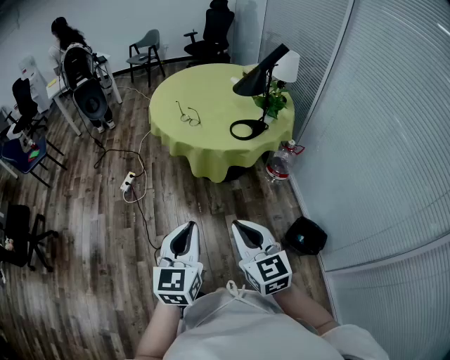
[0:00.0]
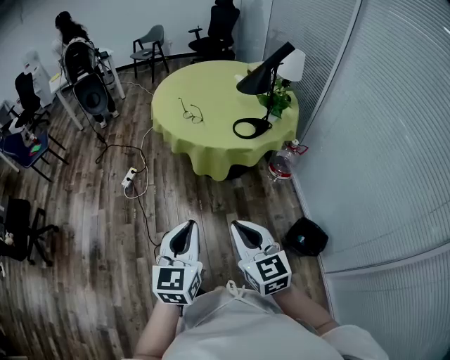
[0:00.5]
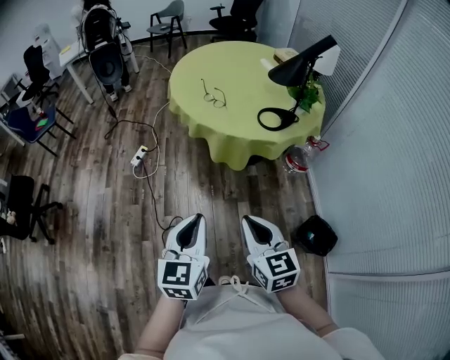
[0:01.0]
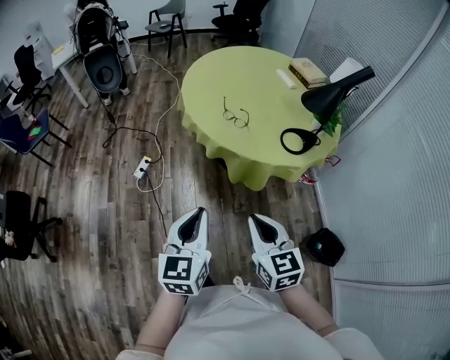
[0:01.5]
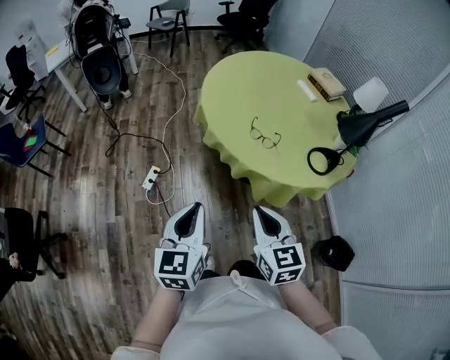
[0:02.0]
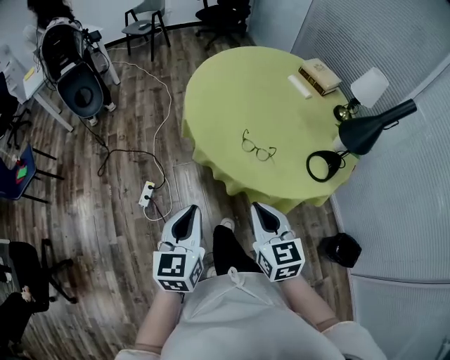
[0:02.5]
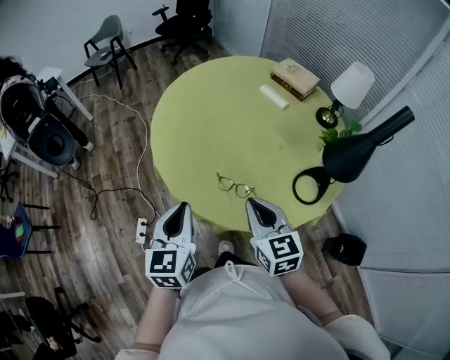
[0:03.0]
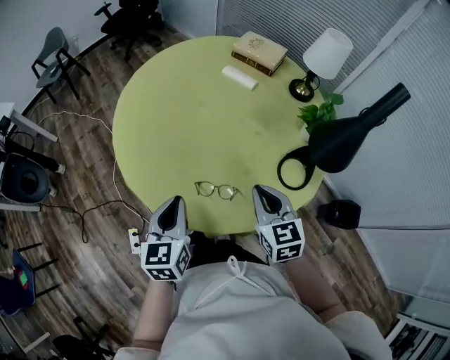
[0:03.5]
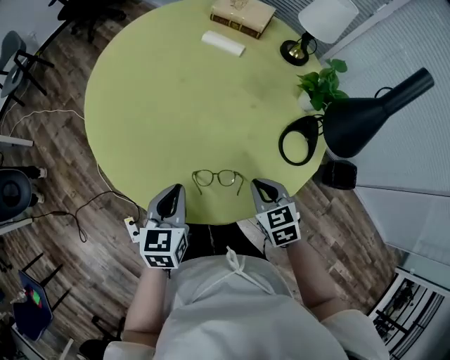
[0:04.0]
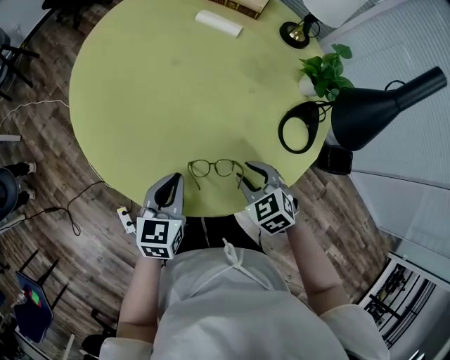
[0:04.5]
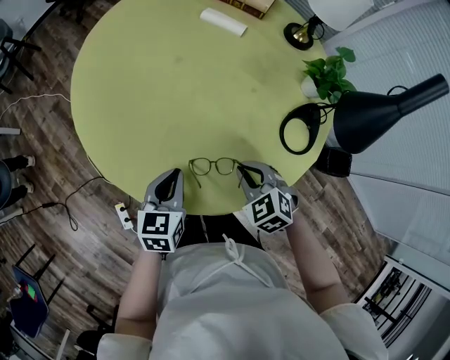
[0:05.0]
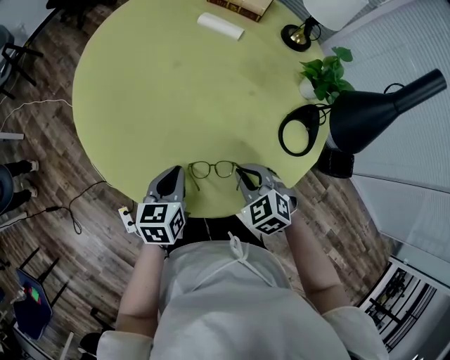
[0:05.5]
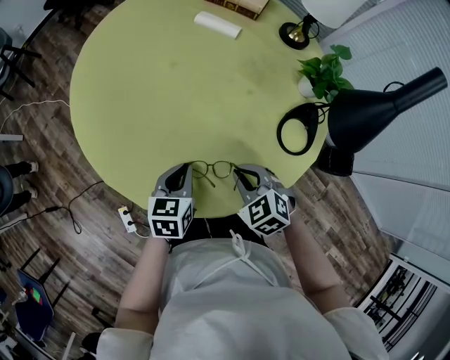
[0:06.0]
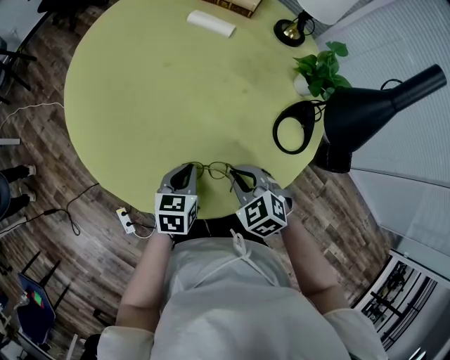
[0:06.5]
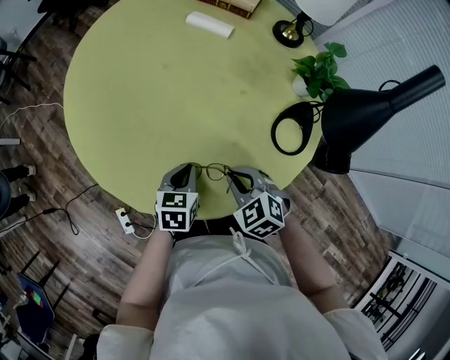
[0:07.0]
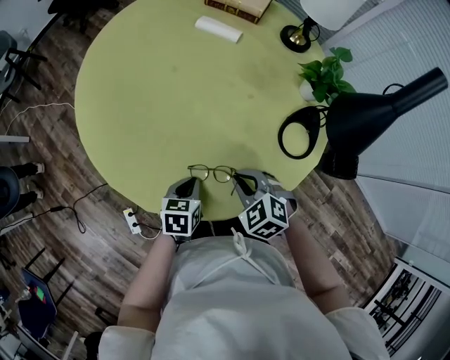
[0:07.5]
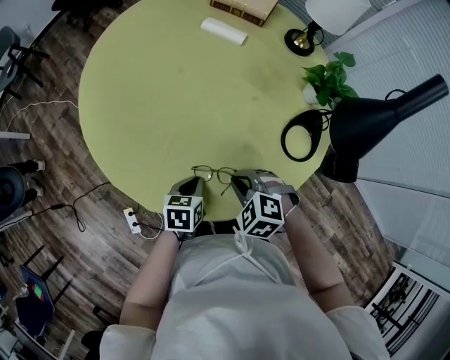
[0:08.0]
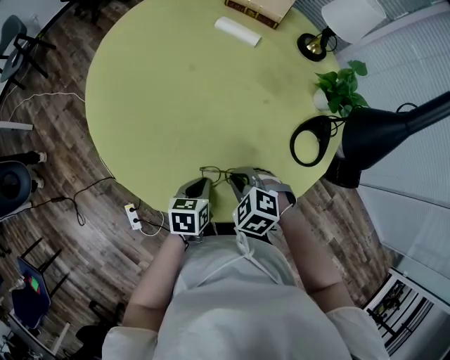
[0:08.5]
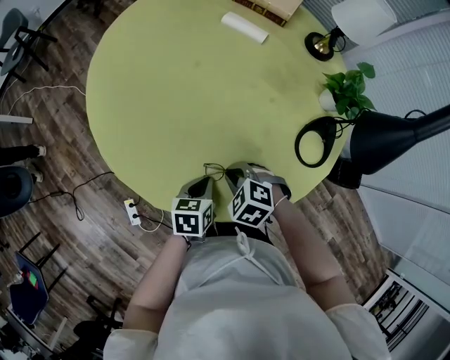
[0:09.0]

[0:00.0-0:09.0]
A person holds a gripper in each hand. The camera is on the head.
0:00.0 to 0:02.0: The pair of grippers is taken forward and to the left, approximately 50 cm.
0:02.0 to 0:04.5: The left gripper changes place by some 50 cm, and rotates about 50 degrees; the right gripper moves roughly 50 cm, points its fingers some 30 degrees further downward, and opens up.
0:04.5 to 0:07.0: The right gripper closes. Meanwhile the left gripper heads downward and to the right, covering roughly 10 cm.
0:07.0 to 0:09.0: The right gripper shifts some 5 cm to the left, and turns by about 20 degrees.

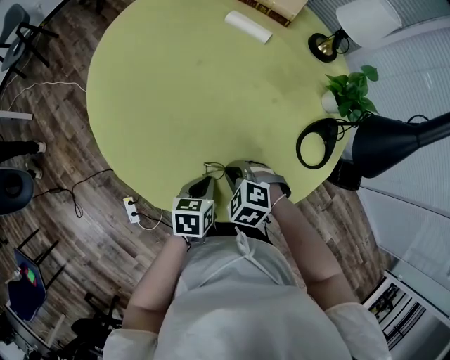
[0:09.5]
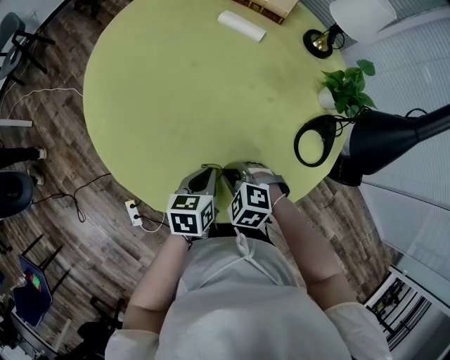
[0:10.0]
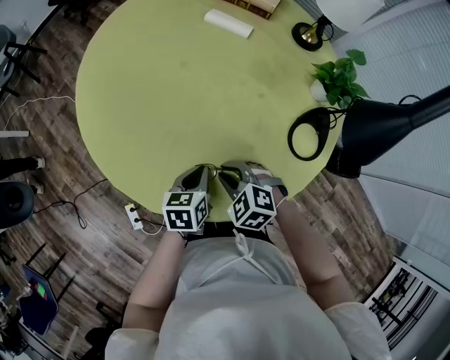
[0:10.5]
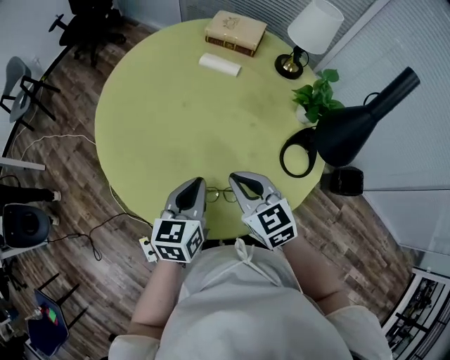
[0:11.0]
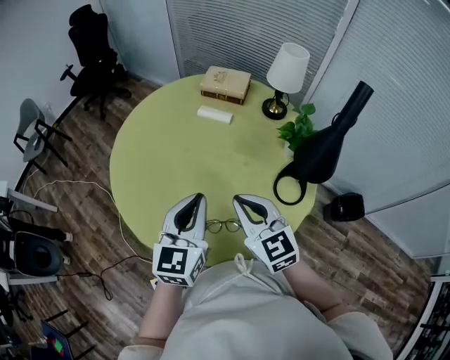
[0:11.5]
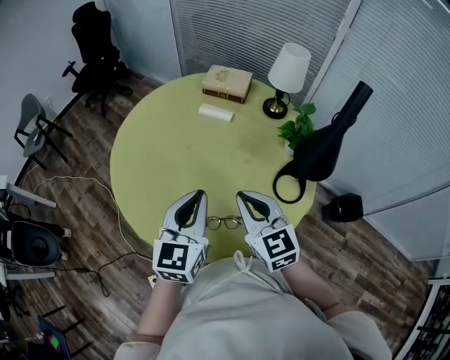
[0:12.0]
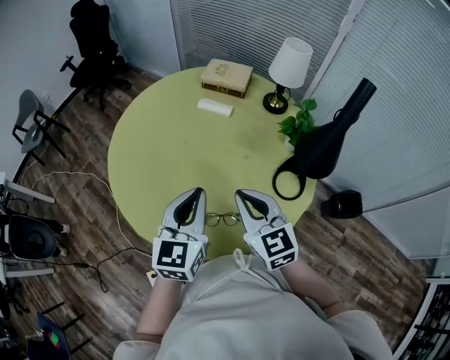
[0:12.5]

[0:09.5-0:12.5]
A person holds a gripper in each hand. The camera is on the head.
0:09.5 to 0:11.0: The grippers both shift upward by roughly 20 cm. The left gripper swivels approximately 30 degrees; the right gripper points its fingers approximately 40 degrees further upward.
0:11.0 to 0:12.5: Both grippers move upward, about 10 cm. The left gripper rotates roughly 20 degrees.

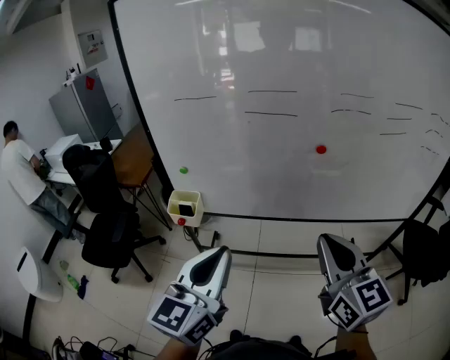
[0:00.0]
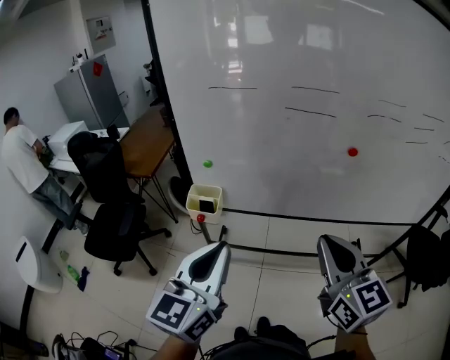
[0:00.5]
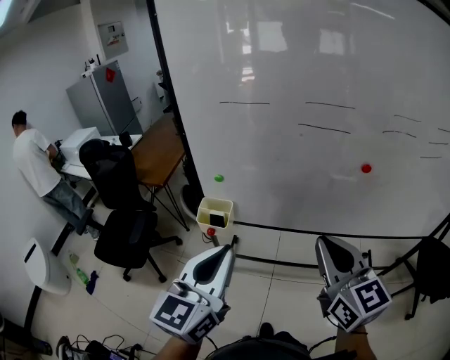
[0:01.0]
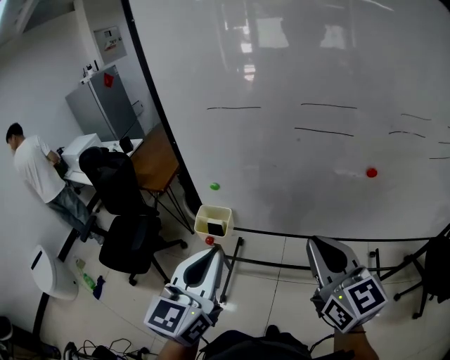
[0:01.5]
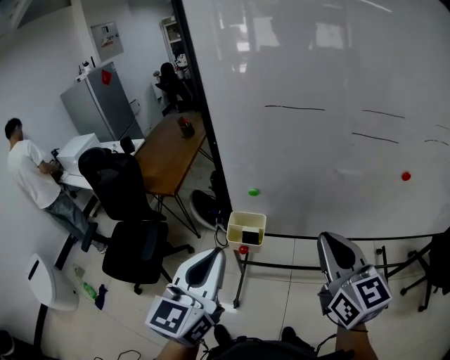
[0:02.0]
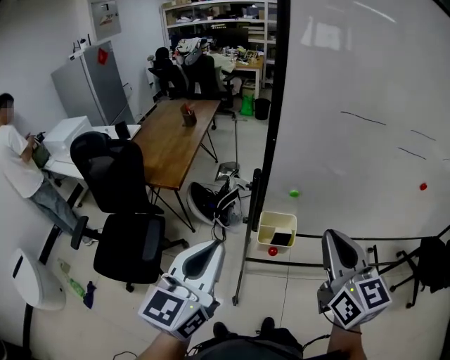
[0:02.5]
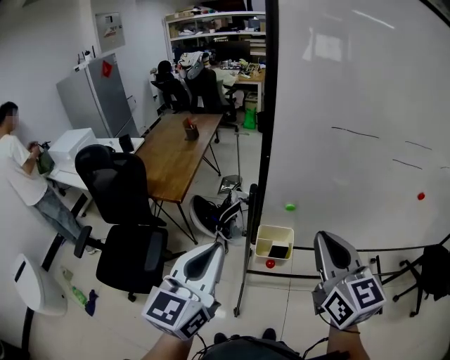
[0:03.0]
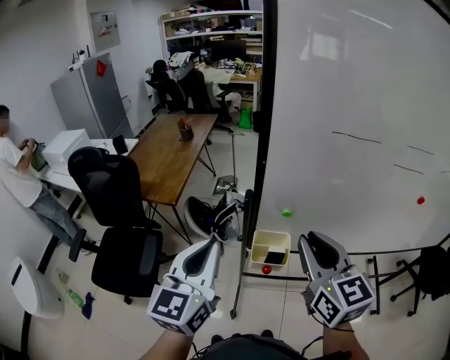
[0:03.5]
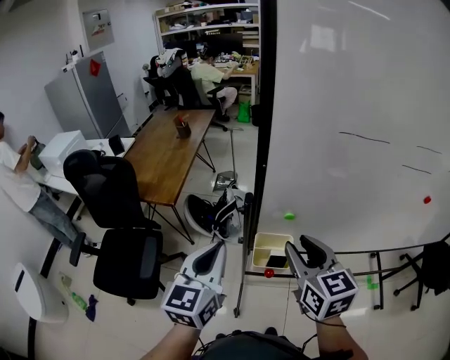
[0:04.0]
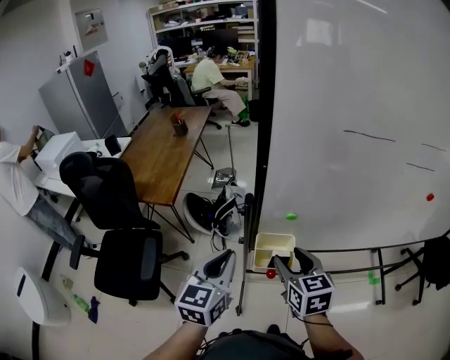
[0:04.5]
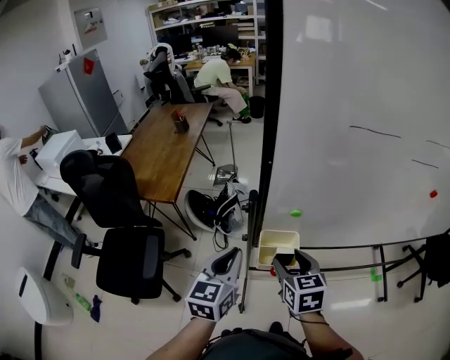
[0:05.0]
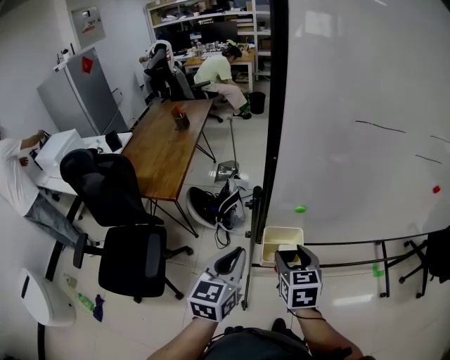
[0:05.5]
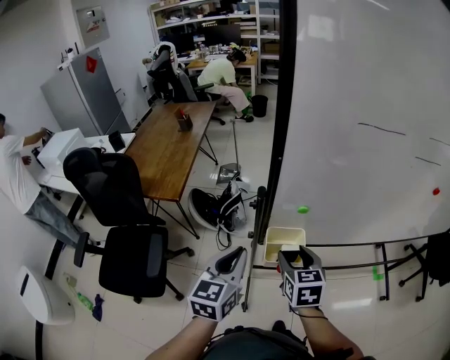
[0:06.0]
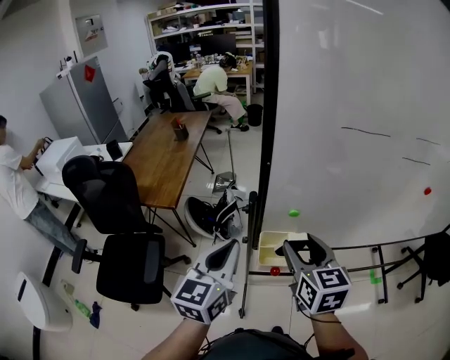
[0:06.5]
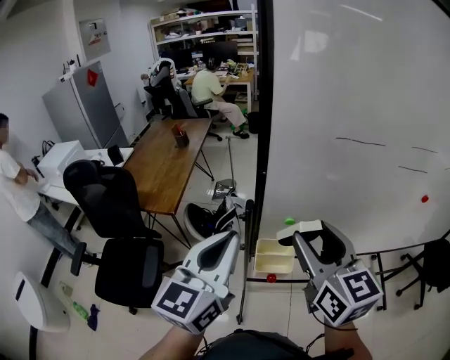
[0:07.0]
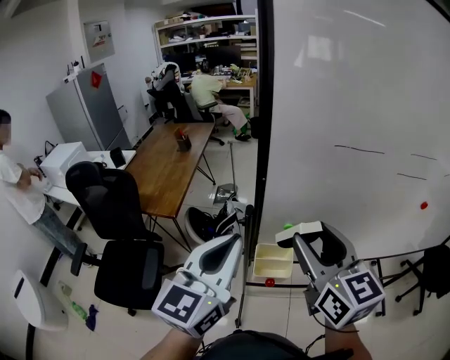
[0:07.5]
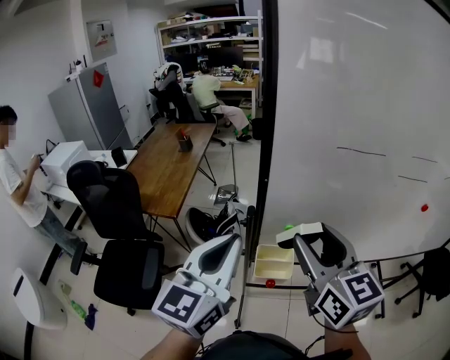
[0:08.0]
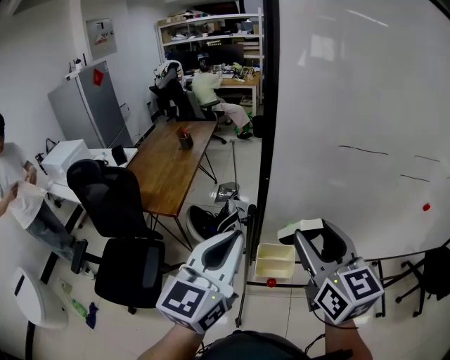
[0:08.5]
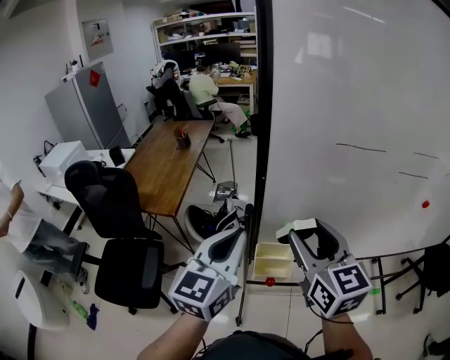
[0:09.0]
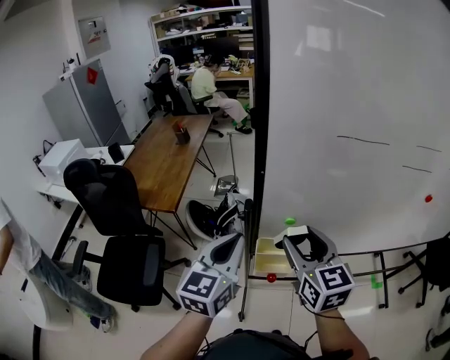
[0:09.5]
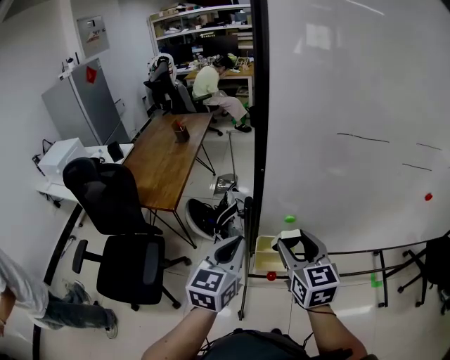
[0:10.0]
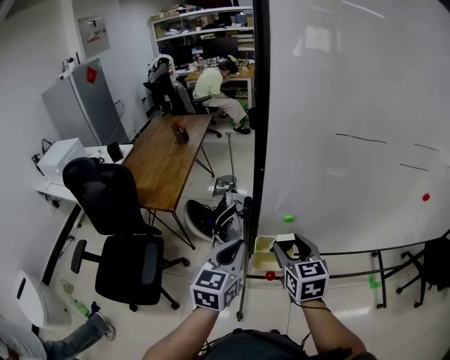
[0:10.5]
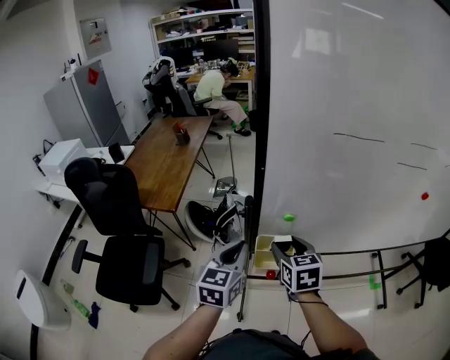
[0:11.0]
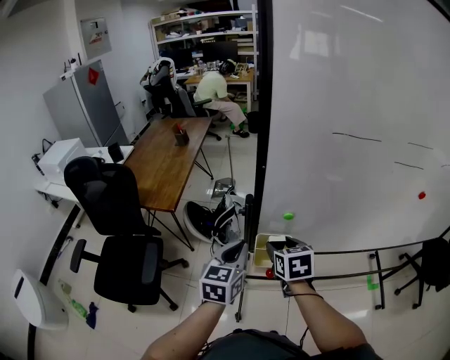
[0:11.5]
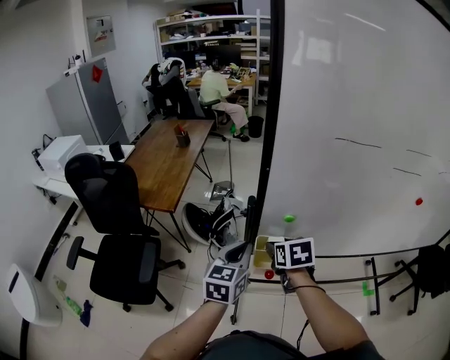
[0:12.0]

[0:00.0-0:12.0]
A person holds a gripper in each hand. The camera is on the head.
0:00.0 to 0:02.0: Both grippers travel together to the left and forward, approximately 35 cm.
0:02.0 to 0:04.0: Both grippers travel together to the left, forward and downward, roughly 25 cm. The right gripper opens up.
0:04.0 to 0:06.0: The right gripper is displaced downward by approximately 15 cm, changes its angle by about 20 degrees, and opens; the left gripper moves downward, some 10 cm.
0:06.0 to 0:08.0: Both grippers travel together upward, some 25 cm. The left gripper turns by approximately 20 degrees; the right gripper angles its fingers upward, by about 30 degrees.
0:08.0 to 0:10.0: The right gripper is displaced downward by about 15 cm, while the left gripper is displaced downward and forward by about 15 cm.
0:10.0 to 0:12.0: The right gripper is displaced downward by roughly 10 cm, and angles its fingers downward, by roughly 30 degrees.

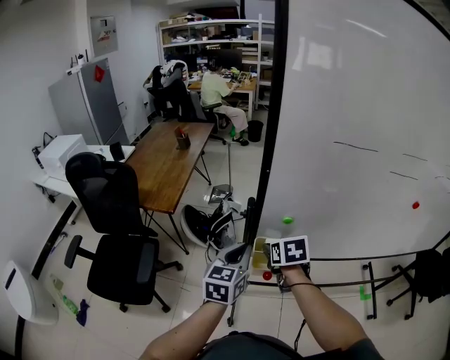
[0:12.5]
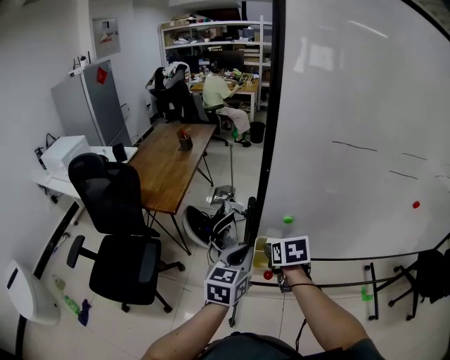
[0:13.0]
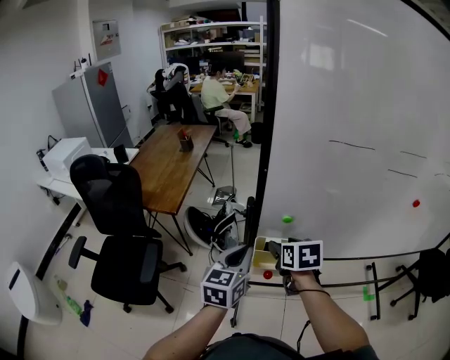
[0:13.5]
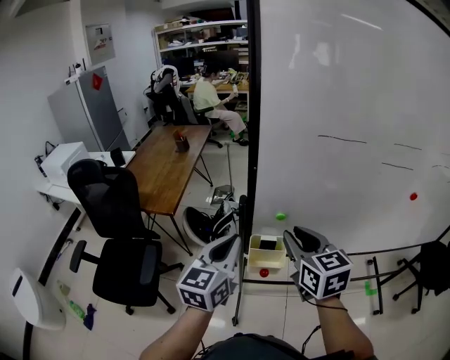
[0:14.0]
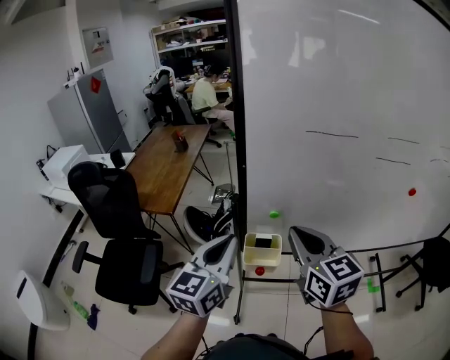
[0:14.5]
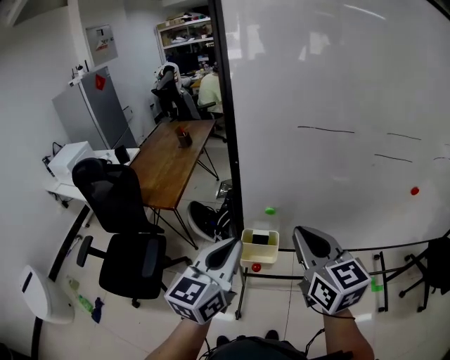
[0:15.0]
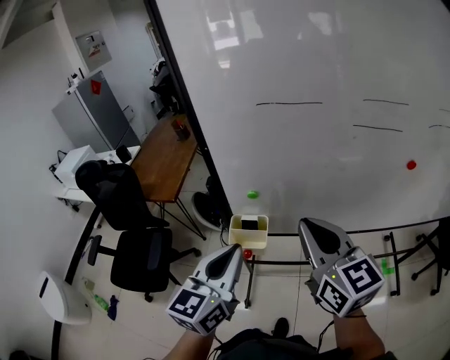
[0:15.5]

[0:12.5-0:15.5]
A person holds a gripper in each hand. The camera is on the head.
0:12.5 to 0:14.0: The left gripper goes some 10 cm upward. The right gripper heads upward, covering roughly 15 cm, tilts its fingers roughly 30 degrees upward, and closes up.
0:14.0 to 0:15.5: The right gripper shifts roughly 15 cm to the right, backward and upward, and closes, while the left gripper travels to the right and backward by roughly 15 cm.
